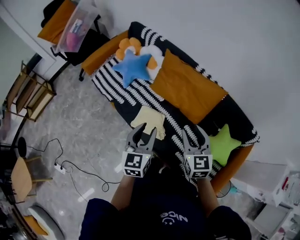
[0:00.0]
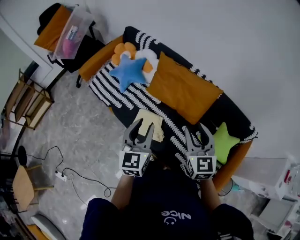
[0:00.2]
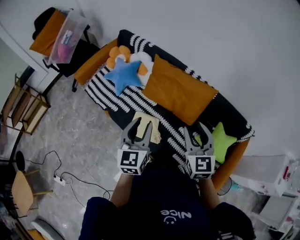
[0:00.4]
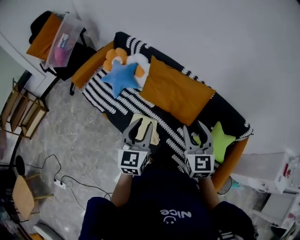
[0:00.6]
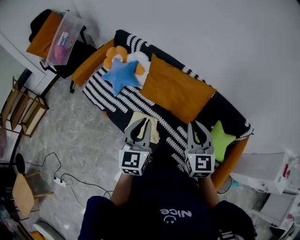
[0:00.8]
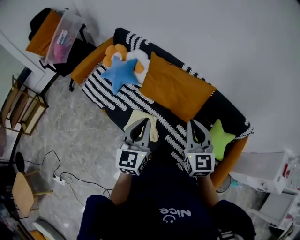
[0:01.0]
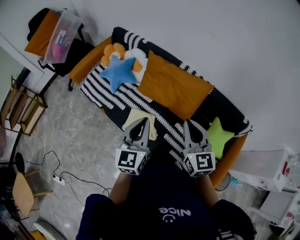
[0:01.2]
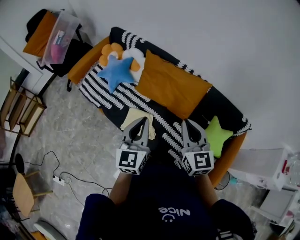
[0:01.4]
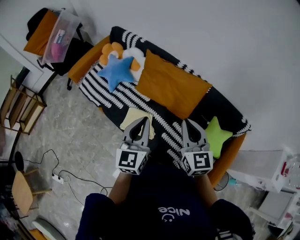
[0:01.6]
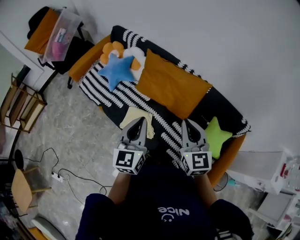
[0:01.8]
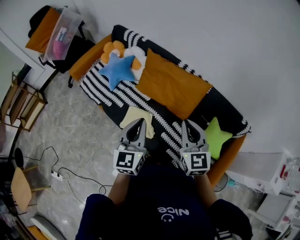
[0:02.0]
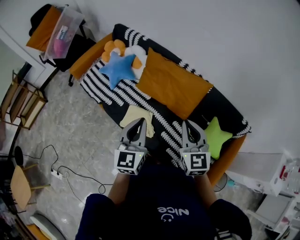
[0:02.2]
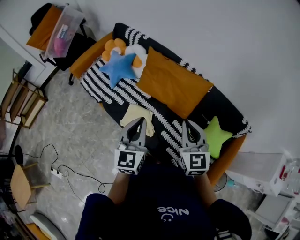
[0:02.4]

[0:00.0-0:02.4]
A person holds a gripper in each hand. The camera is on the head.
0:00.0 to 0:01.2: The grippers both shift upward by some 5 cm. The right gripper closes its fingers, while the left gripper closes up.
0:01.2 to 0:02.4: The grippers move only a little.

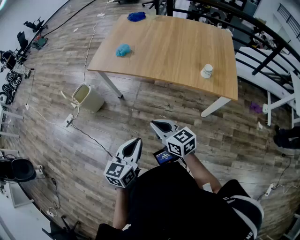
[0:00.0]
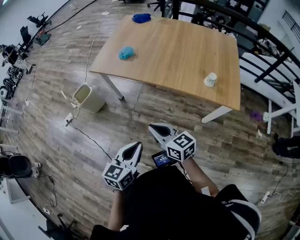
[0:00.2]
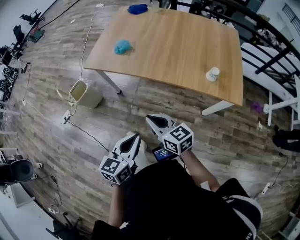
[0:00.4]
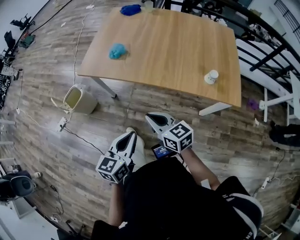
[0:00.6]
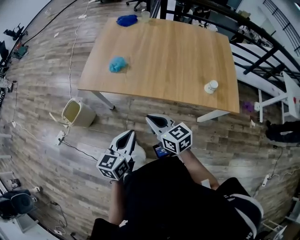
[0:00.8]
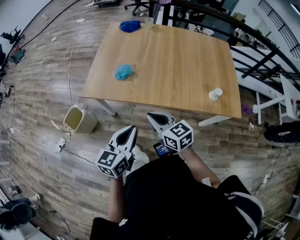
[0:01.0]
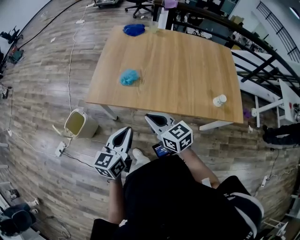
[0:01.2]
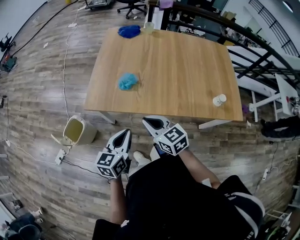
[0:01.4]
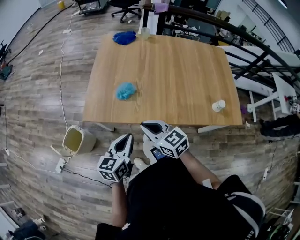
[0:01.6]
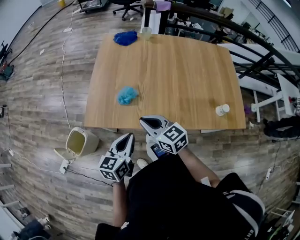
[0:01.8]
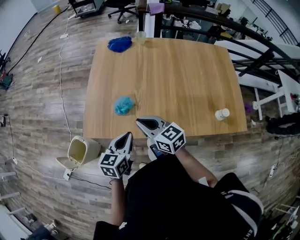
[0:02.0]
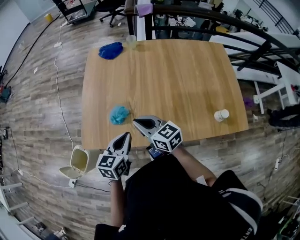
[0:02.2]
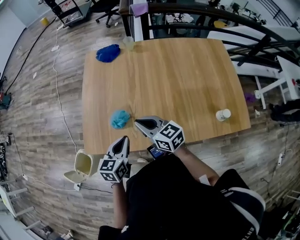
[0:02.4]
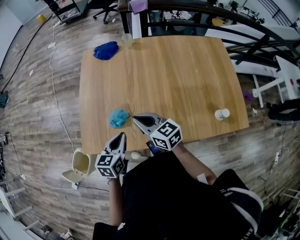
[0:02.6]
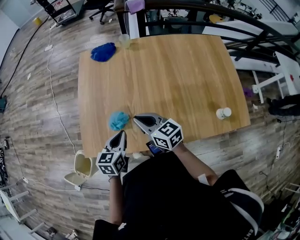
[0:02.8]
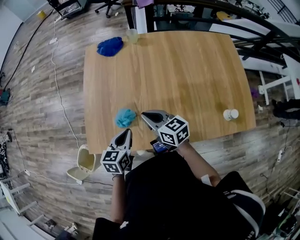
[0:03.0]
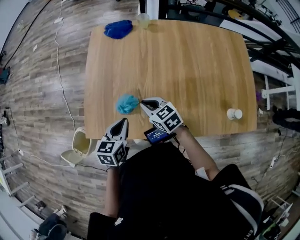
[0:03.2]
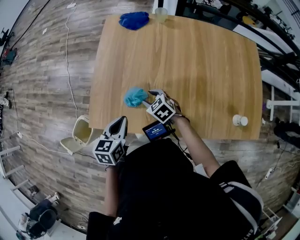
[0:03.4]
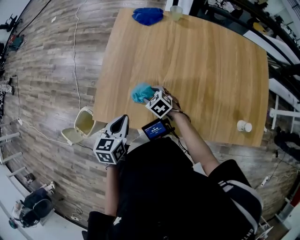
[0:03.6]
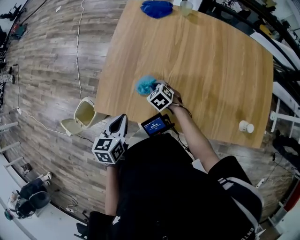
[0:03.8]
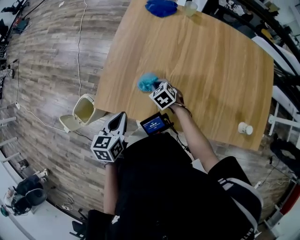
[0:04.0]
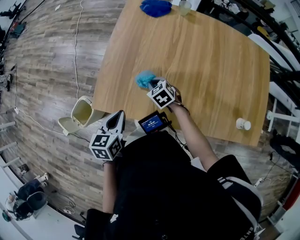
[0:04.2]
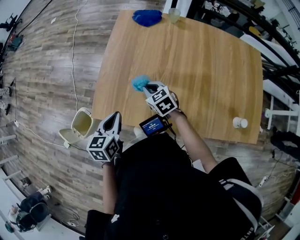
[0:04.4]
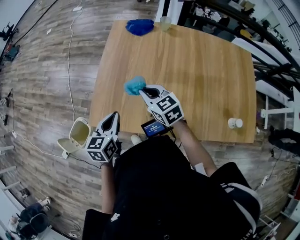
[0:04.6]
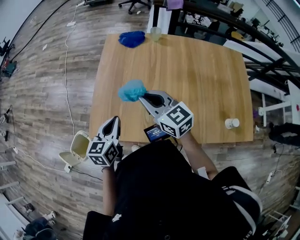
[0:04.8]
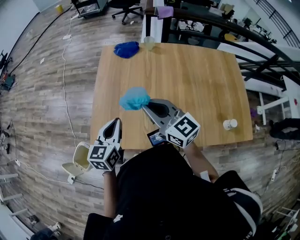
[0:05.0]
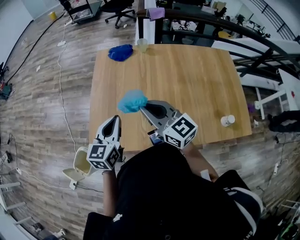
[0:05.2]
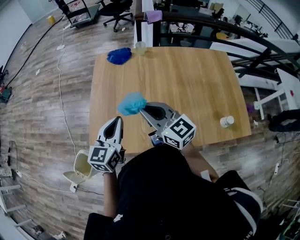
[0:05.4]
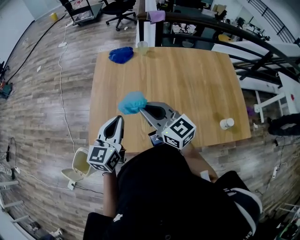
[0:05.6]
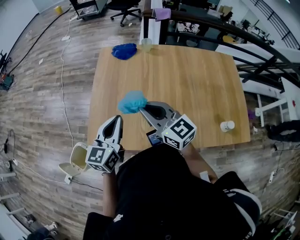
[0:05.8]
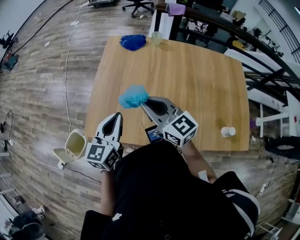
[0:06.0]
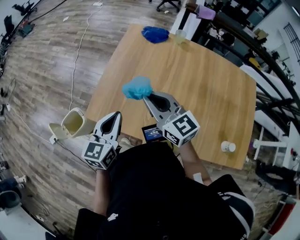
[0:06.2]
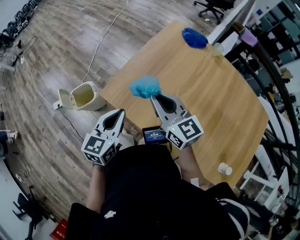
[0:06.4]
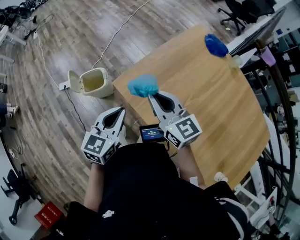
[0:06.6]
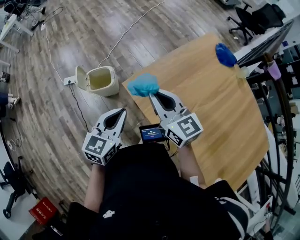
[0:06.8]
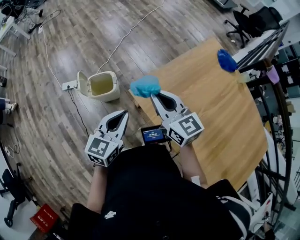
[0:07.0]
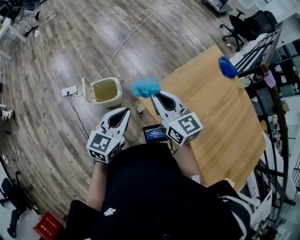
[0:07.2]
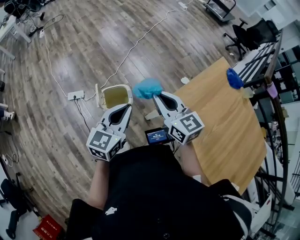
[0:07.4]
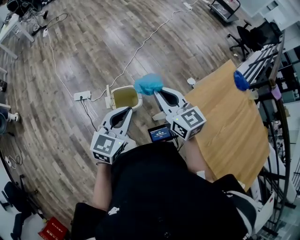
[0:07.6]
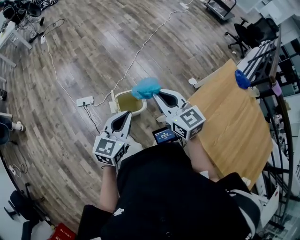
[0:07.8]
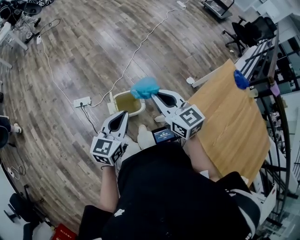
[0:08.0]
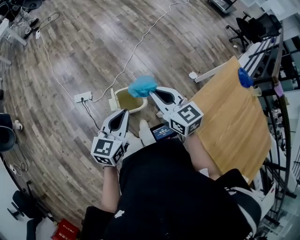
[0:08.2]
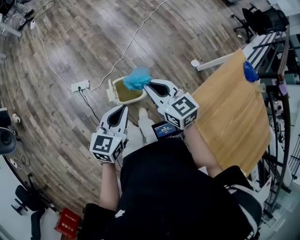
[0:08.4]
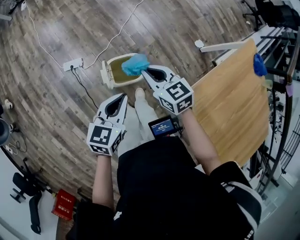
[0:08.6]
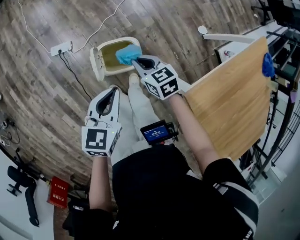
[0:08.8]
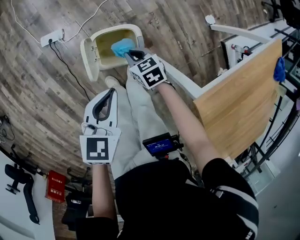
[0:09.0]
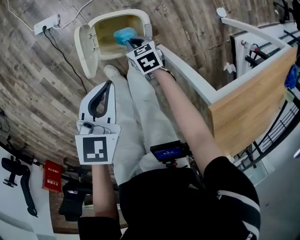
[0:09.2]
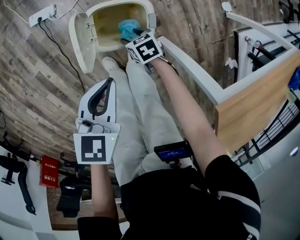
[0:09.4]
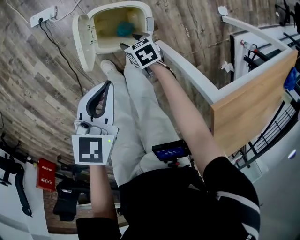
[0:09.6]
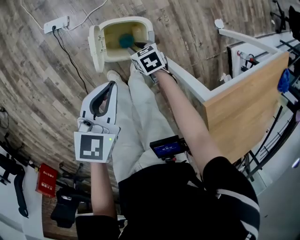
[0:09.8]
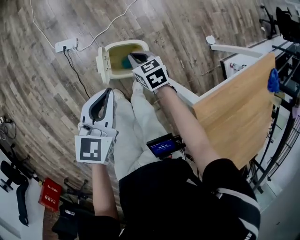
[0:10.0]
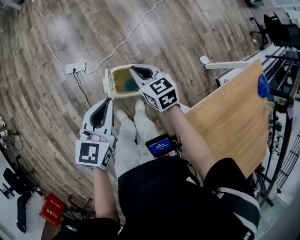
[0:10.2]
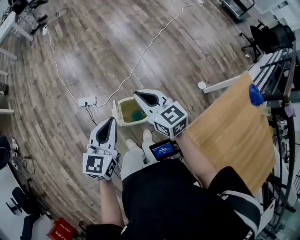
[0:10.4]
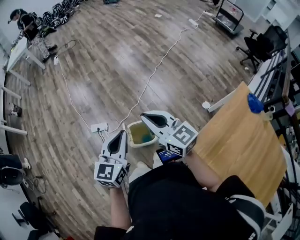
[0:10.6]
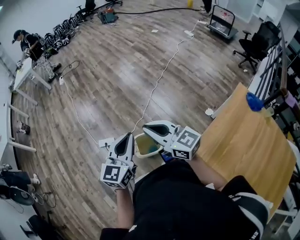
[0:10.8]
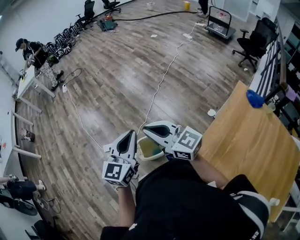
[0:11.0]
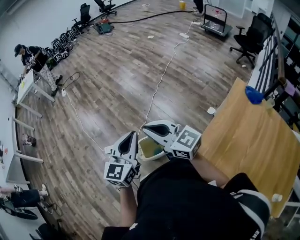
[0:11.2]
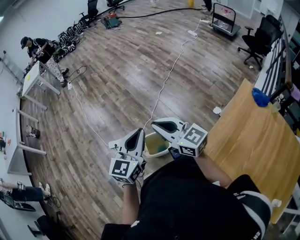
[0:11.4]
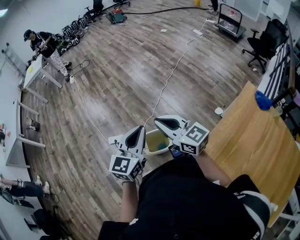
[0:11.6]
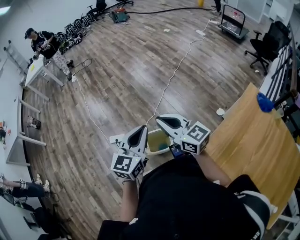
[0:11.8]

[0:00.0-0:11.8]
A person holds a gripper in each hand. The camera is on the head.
0:00.0 to 0:01.4: Both grippers travel together forward and to the left, about 40 cm.
0:01.4 to 0:03.0: Both grippers move forward, roughly 25 cm.
0:03.0 to 0:04.4: The right gripper heads to the left, downward and forward, covering roughly 15 cm, rotates some 30 degrees, and opens, then closes again, while the left gripper heads to the left, covering about 15 cm.
0:04.4 to 0:06.0: The left gripper heads upward and to the right, covering roughly 15 cm, and changes its angle by some 20 degrees; the right gripper shifts approximately 20 cm upward, and tips its fingers upward by roughly 40 degrees.
0:06.0 to 0:07.4: The two grippers travel together, some 40 cm. The right gripper rotates about 30 degrees. Meanwhile the left gripper rotates approximately 30 degrees.
0:07.4 to 0:08.8: The left gripper shifts about 25 cm downward, forward and to the left, and turns by roughly 30 degrees; the right gripper goes some 35 cm downward and forward, and tilts its fingers some 30 degrees downward.
0:08.8 to 0:10.4: The left gripper moves upward and to the left, some 15 cm, and turns by approximately 20 degrees. Meanwhile the right gripper is displaced upward by some 25 cm, changes its angle by roughly 30 degrees, and opens, then closes again.
0:10.4 to 0:11.8: The left gripper goes about 15 cm upward and to the right; the right gripper travels upward and backward by about 15 cm.

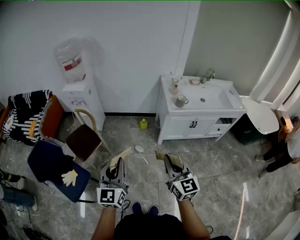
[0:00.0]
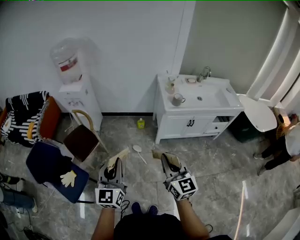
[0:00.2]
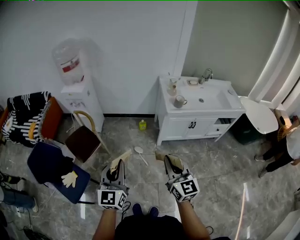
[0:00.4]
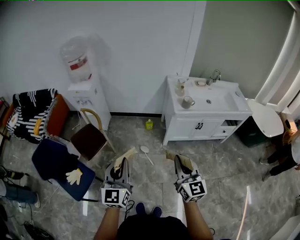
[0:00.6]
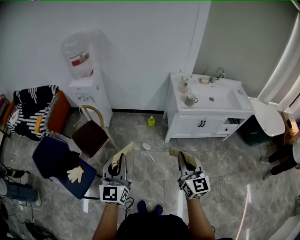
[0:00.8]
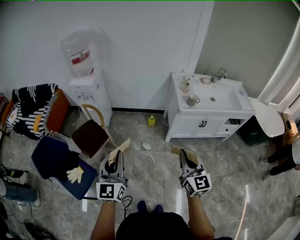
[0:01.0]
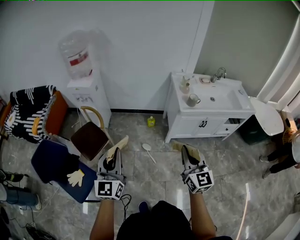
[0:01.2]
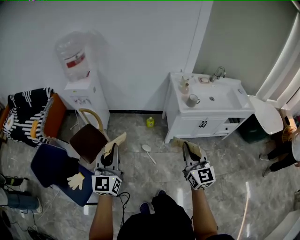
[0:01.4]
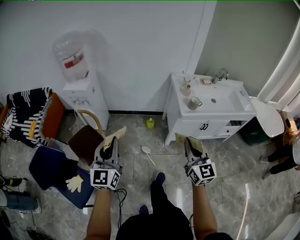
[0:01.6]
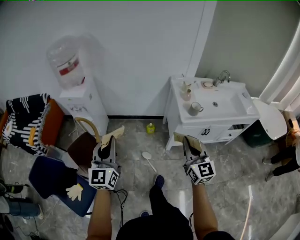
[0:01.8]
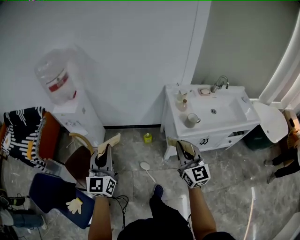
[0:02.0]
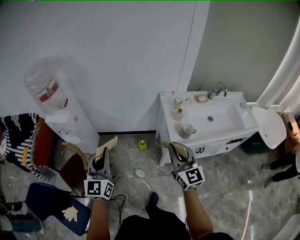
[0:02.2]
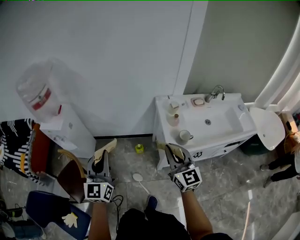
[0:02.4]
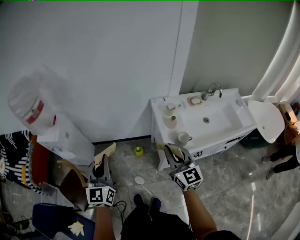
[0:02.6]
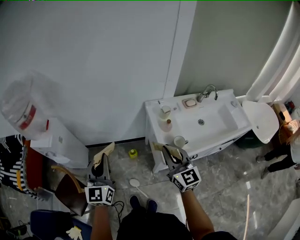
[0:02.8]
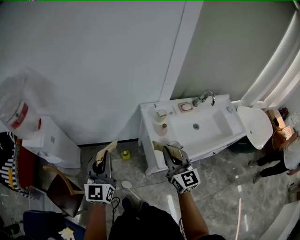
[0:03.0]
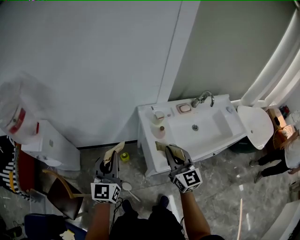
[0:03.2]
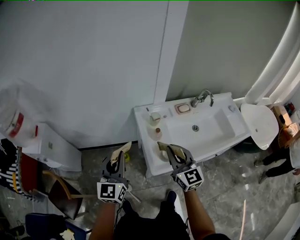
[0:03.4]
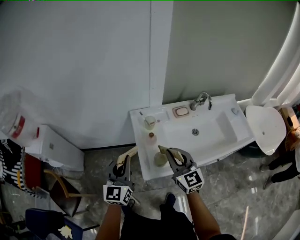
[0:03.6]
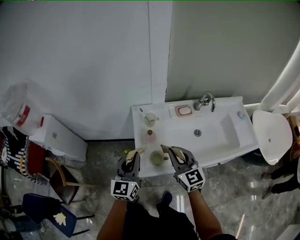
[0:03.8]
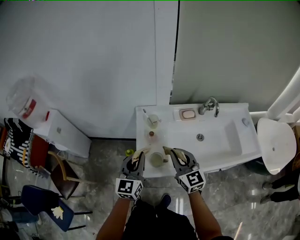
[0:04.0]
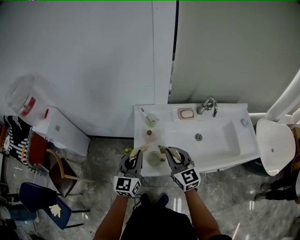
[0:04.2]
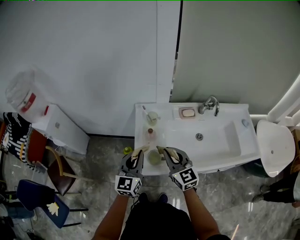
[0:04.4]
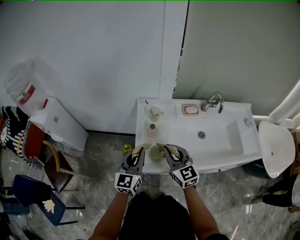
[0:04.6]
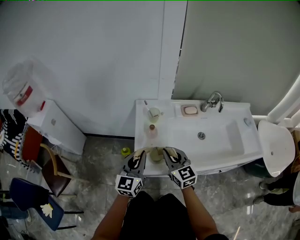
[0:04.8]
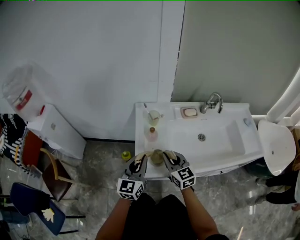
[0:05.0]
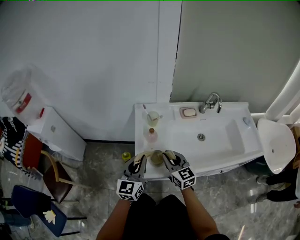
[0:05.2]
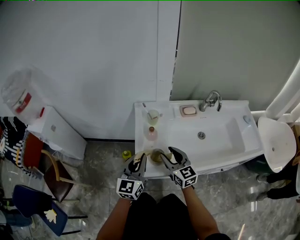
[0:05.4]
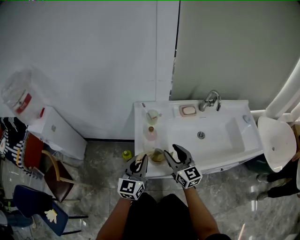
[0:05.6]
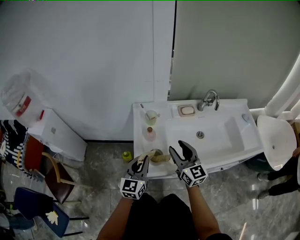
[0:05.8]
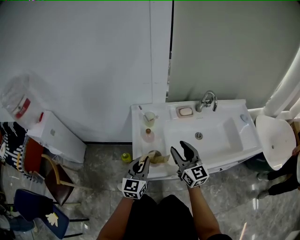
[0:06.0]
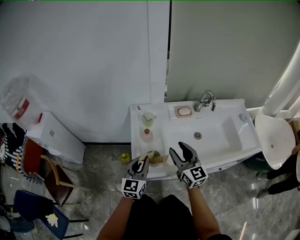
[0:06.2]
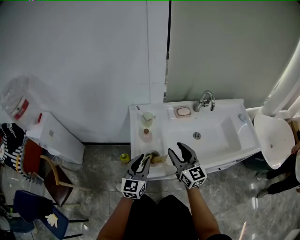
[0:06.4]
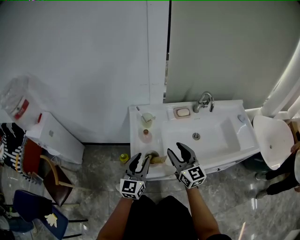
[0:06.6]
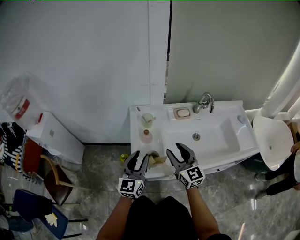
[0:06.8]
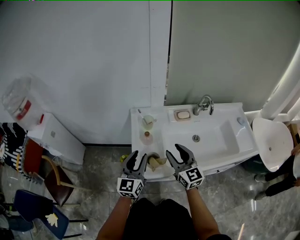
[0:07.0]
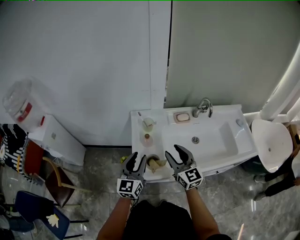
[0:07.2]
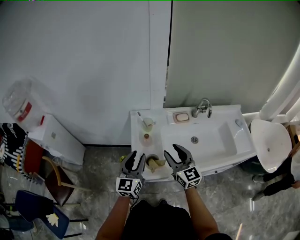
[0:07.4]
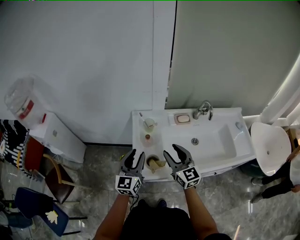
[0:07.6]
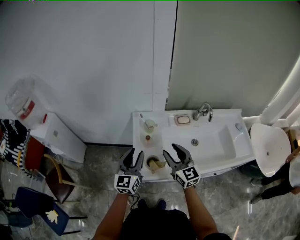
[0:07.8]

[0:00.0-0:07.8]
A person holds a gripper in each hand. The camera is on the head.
0:00.0 to 0:01.6: The right gripper goes roughly 15 cm forward, while the left gripper moves forward and to the left, approximately 20 cm.
0:01.6 to 0:03.2: Both grippers are carried forward and to the right, about 50 cm.
0:03.2 to 0:04.6: Both grippers move to the right and downward, some 25 cm. The right gripper changes its angle by some 20 degrees.
0:04.6 to 0:06.2: The right gripper travels to the right by about 5 cm, goes downward and returns, about 10 cm each way, and opens. Meanwhile the left gripper shifts some 5 cm downward.
0:06.2 to 0:07.8: The left gripper is displaced upward by approximately 10 cm, and opens its fingers, while the right gripper heads upward, covering approximately 5 cm.

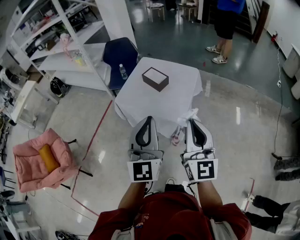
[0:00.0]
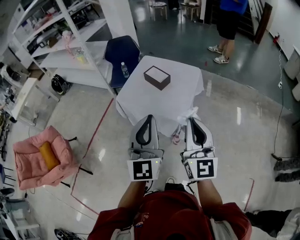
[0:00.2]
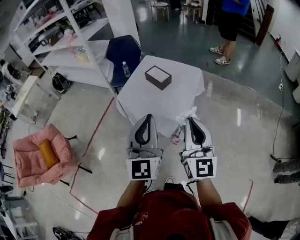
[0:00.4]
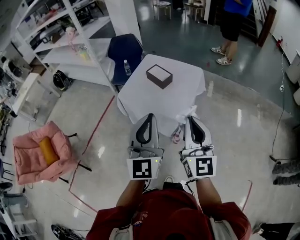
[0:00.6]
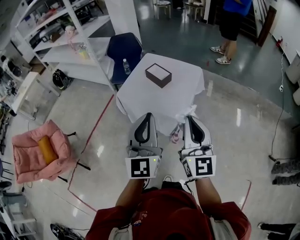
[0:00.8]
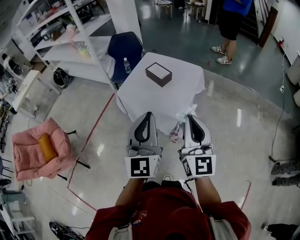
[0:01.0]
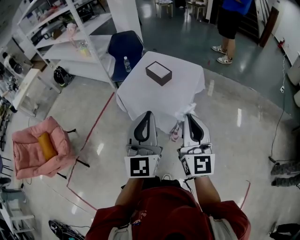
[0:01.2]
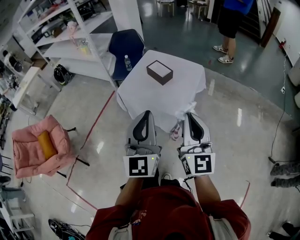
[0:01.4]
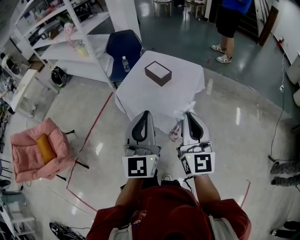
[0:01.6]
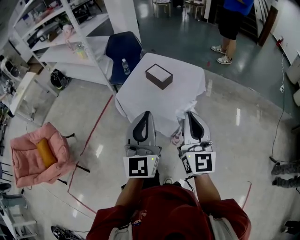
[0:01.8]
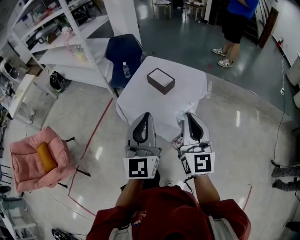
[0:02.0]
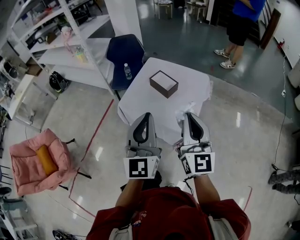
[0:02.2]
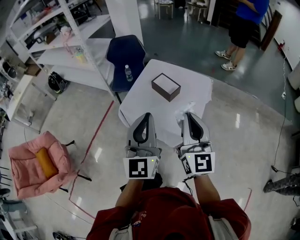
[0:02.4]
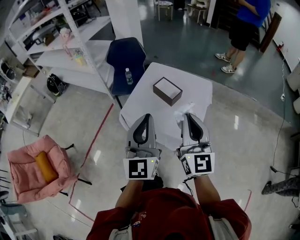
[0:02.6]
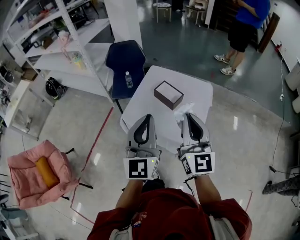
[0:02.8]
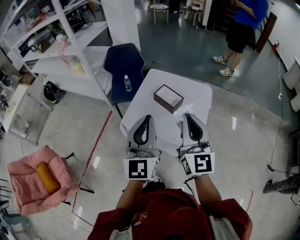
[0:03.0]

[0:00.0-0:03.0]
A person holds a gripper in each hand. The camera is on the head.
0:00.0 to 0:01.6: The grippers stay close to where they were, moving slightly.
0:01.6 to 0:03.0: The two grippers go roughly 25 cm forward and to the left.
